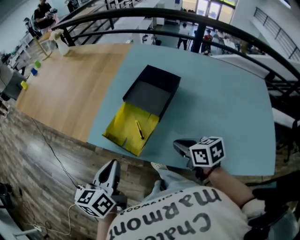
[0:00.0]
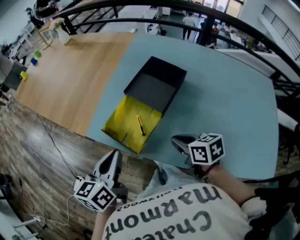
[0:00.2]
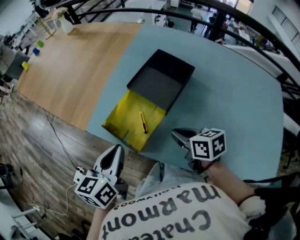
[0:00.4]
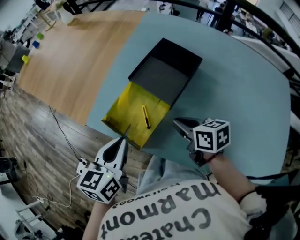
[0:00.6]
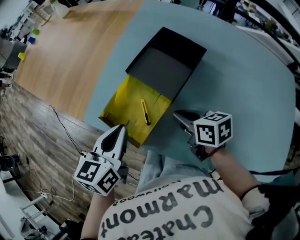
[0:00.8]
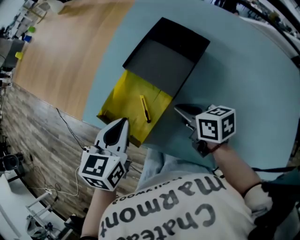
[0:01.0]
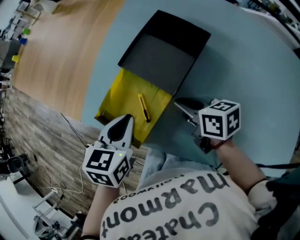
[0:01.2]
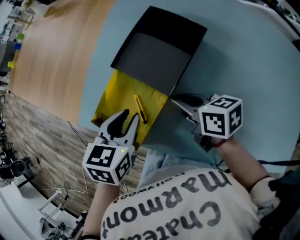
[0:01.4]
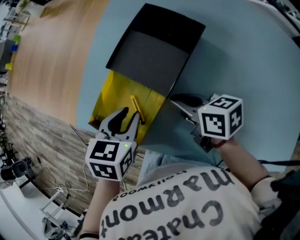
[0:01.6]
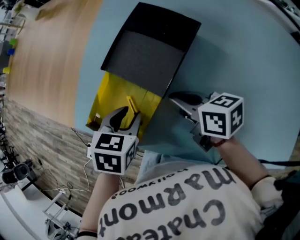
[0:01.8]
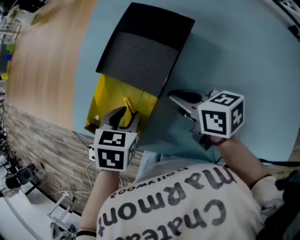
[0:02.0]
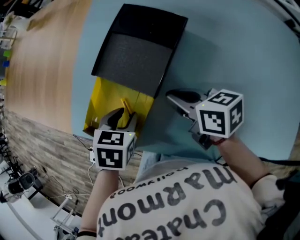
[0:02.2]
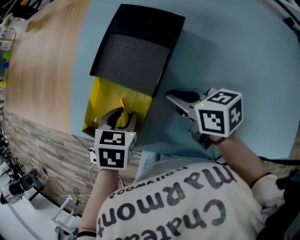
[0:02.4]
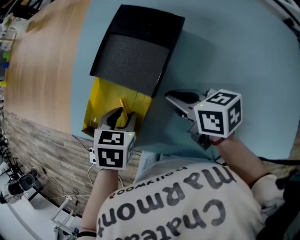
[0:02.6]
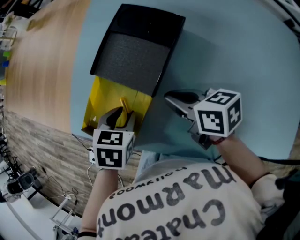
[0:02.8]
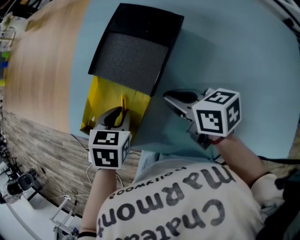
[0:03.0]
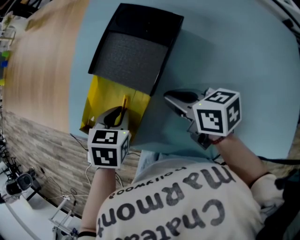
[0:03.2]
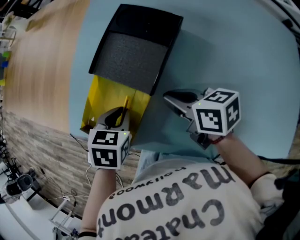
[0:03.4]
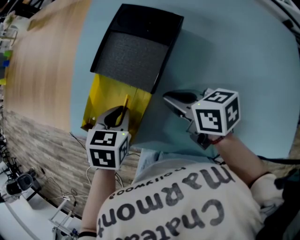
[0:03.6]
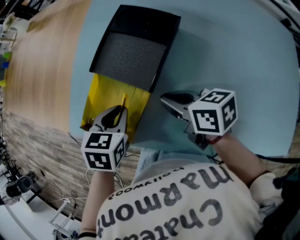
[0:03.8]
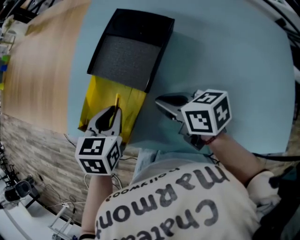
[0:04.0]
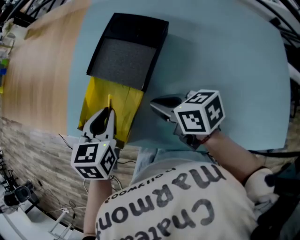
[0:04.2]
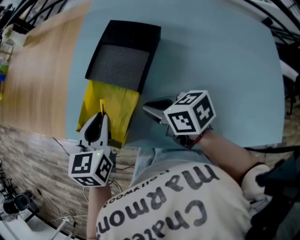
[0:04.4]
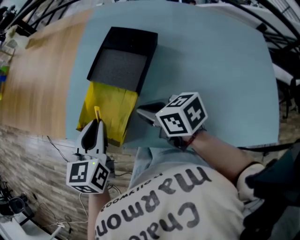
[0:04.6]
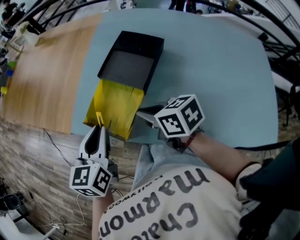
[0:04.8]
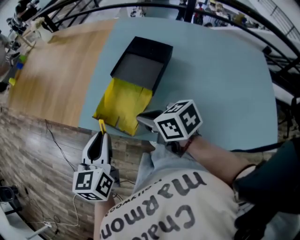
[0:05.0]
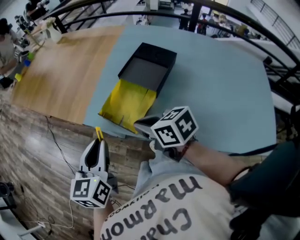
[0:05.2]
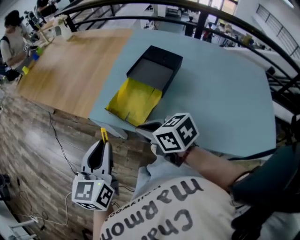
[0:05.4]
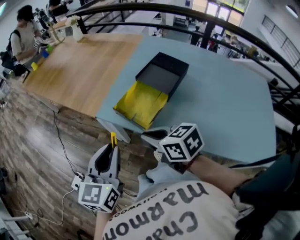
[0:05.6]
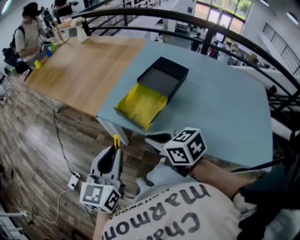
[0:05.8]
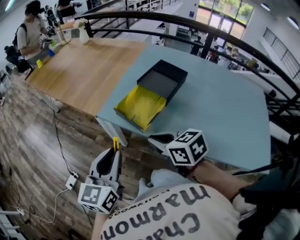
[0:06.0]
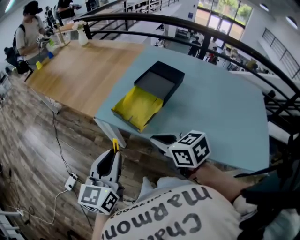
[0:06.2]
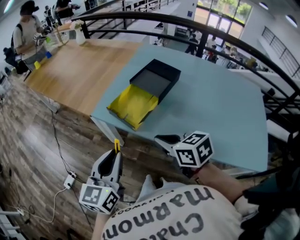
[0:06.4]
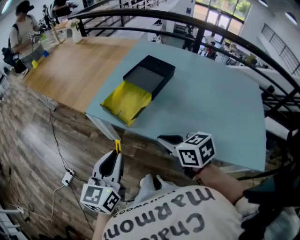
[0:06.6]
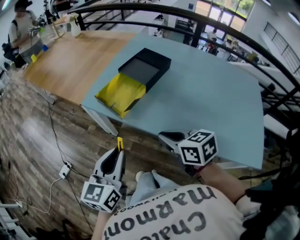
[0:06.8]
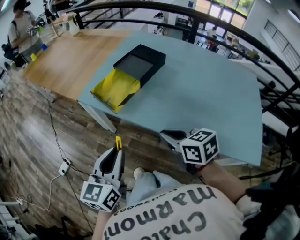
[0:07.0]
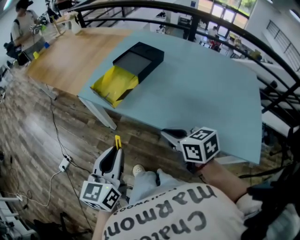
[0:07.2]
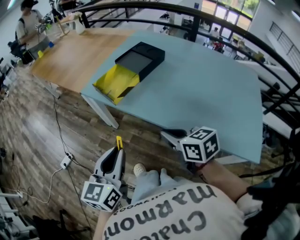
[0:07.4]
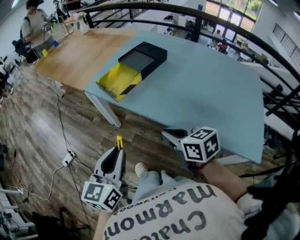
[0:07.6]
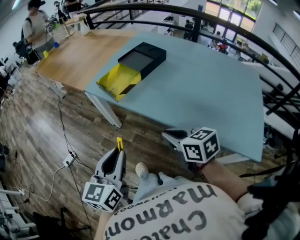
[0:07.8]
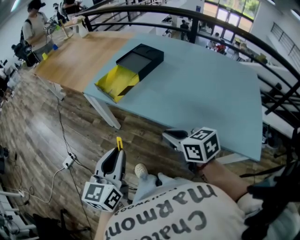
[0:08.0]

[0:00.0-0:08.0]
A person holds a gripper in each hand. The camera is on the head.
0:00.0 to 0:01.6: The left gripper travels forward, downward and to the right by about 20 cm, points its fingers about 30 degrees further downward, and opens. Meanwhile the right gripper is displaced forward and downward by roughly 15 cm.
0:01.6 to 0:03.2: The grippers move only a little.
0:03.2 to 0:04.8: The right gripper travels to the left and upward by some 10 cm, while the left gripper shifts about 15 cm upward and to the left, and points its fingers roughly 40 degrees further upward.
0:04.8 to 0:06.4: The right gripper is displaced backward by roughly 15 cm. Meanwhile the left gripper moves backward and to the left, roughly 20 cm.
0:06.4 to 0:08.0: Both grippers travel together backward and to the right, roughly 20 cm.

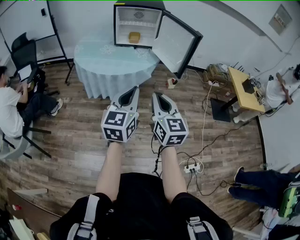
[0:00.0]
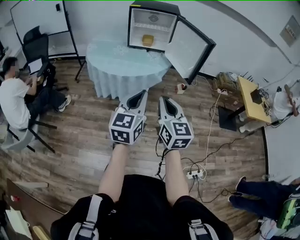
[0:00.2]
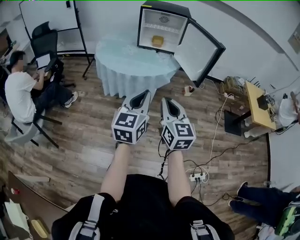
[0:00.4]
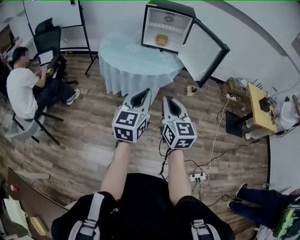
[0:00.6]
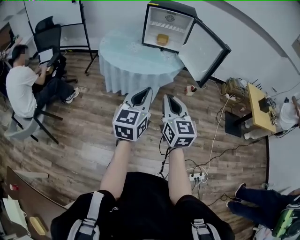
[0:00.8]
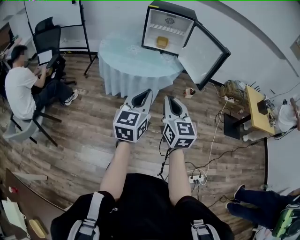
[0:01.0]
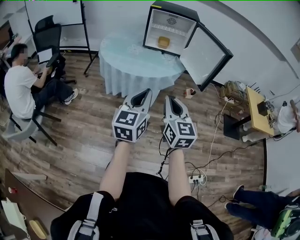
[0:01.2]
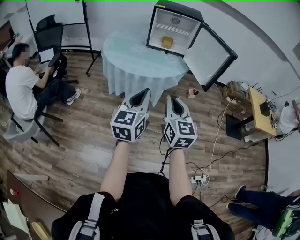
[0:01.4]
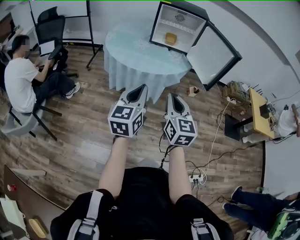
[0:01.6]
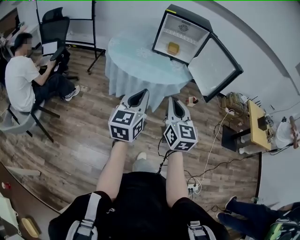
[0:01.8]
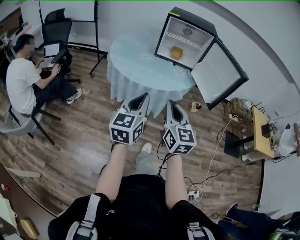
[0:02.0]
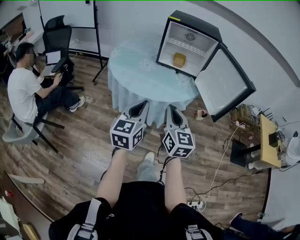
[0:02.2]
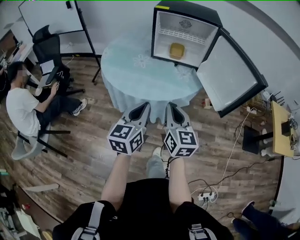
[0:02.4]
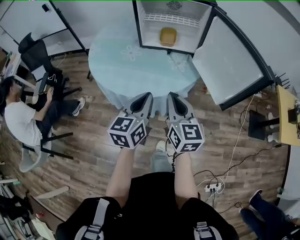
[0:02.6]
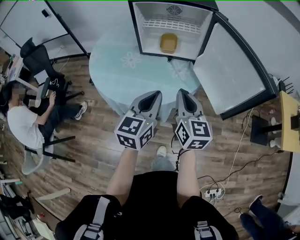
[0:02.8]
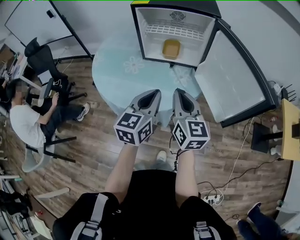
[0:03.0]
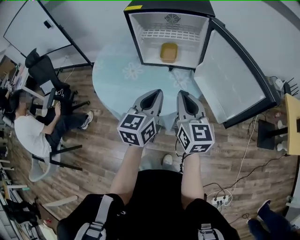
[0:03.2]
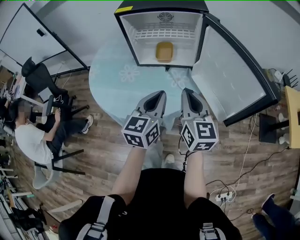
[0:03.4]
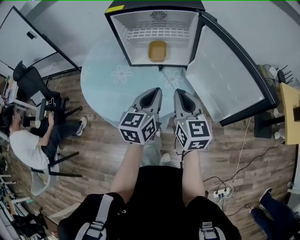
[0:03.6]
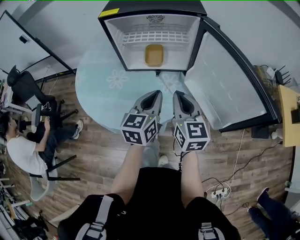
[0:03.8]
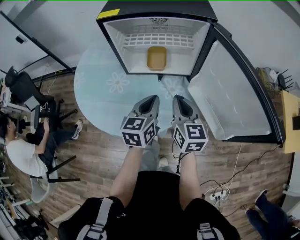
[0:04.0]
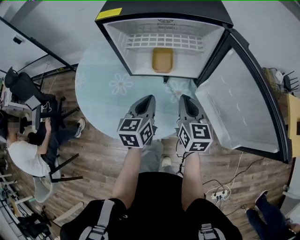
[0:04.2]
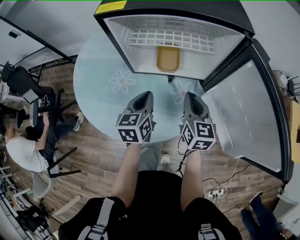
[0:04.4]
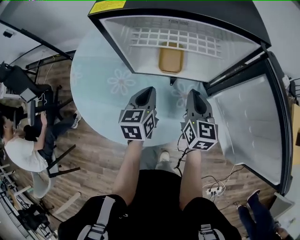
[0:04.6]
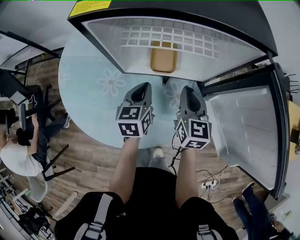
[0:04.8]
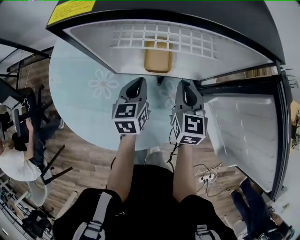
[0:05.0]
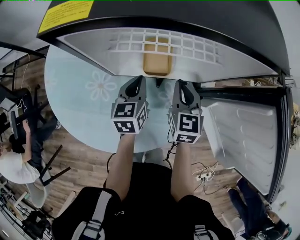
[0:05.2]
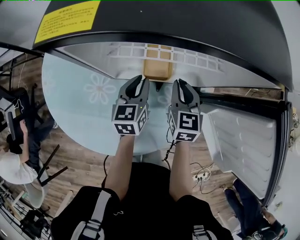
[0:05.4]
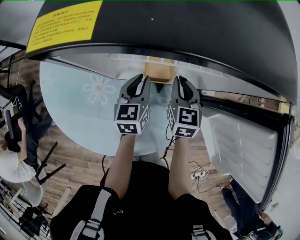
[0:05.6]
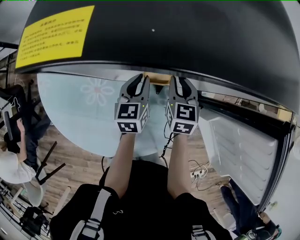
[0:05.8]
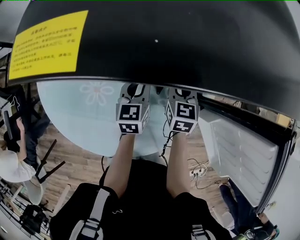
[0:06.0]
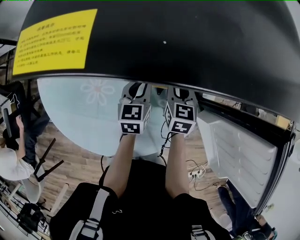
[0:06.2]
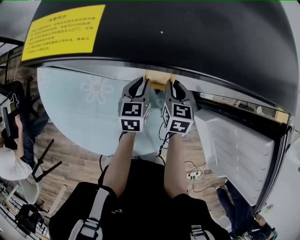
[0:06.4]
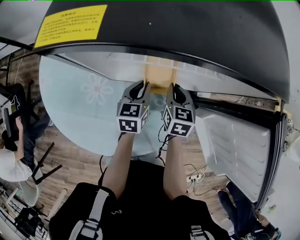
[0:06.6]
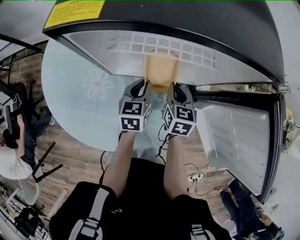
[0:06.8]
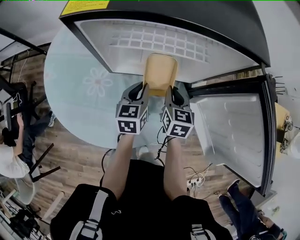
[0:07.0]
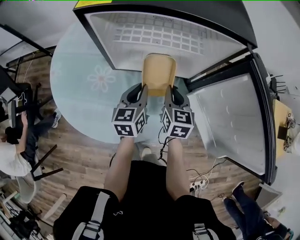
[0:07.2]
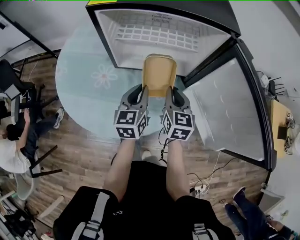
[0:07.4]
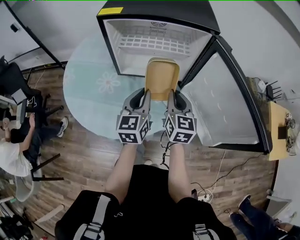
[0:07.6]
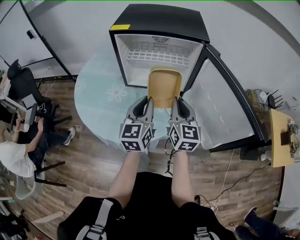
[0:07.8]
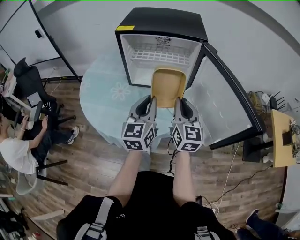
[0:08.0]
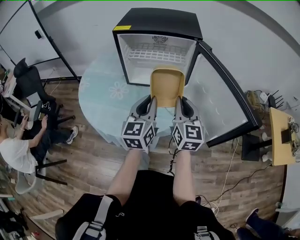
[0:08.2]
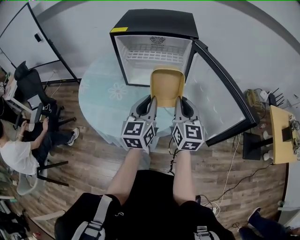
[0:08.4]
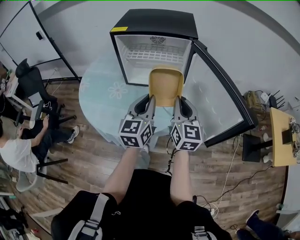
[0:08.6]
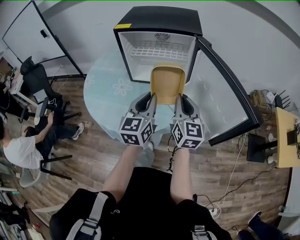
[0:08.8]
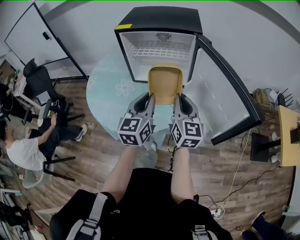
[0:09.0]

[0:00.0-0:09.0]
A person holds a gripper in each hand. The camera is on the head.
0:00.0 to 0:01.6: Both grippers move to the left, about 10 cm.
0:01.6 to 0:03.0: The two grippers travel together, forward, some 40 cm.
0:03.0 to 0:04.4: The grippers both shift forward and downward by about 30 cm.
0:04.4 to 0:06.0: The grippers both shift forward and downward by about 20 cm.
0:06.0 to 0:07.6: The two grippers go about 30 cm backward and upward. The right gripper turns by some 20 degrees.
0:07.6 to 0:09.0: The two grippers go roughly 15 cm backward and upward.

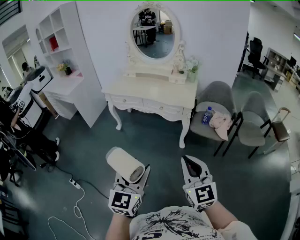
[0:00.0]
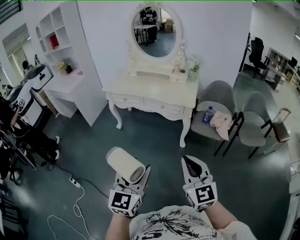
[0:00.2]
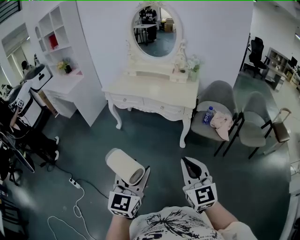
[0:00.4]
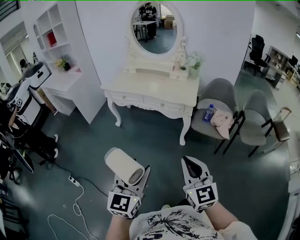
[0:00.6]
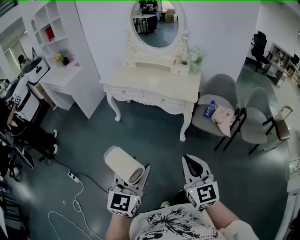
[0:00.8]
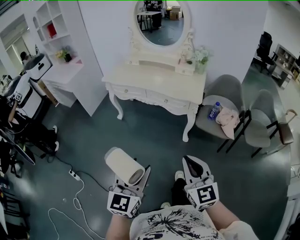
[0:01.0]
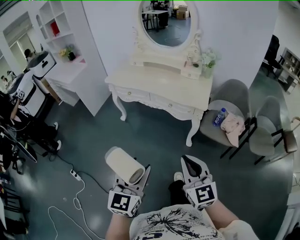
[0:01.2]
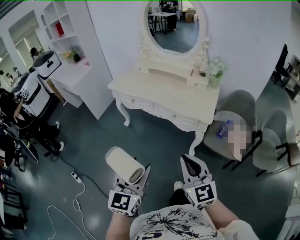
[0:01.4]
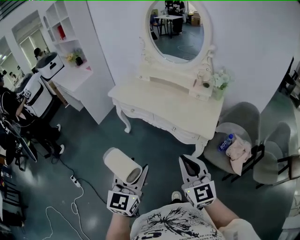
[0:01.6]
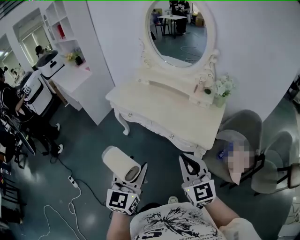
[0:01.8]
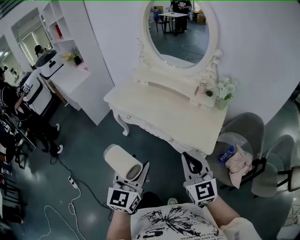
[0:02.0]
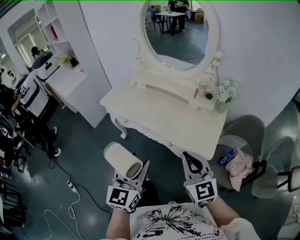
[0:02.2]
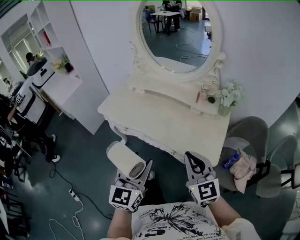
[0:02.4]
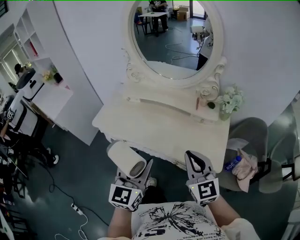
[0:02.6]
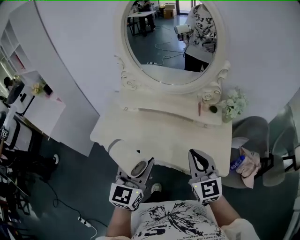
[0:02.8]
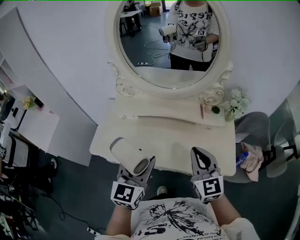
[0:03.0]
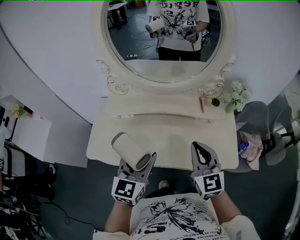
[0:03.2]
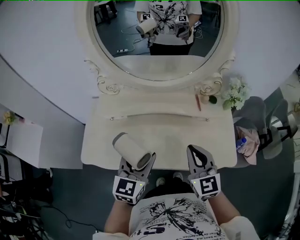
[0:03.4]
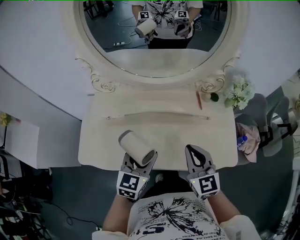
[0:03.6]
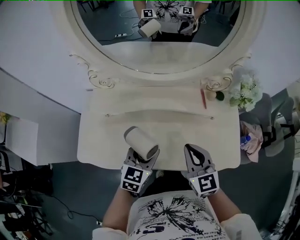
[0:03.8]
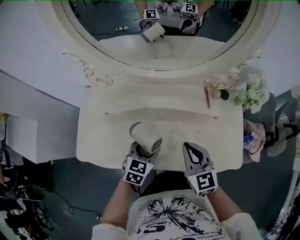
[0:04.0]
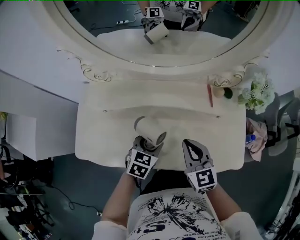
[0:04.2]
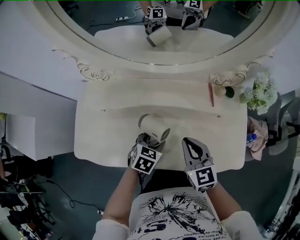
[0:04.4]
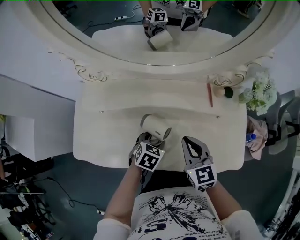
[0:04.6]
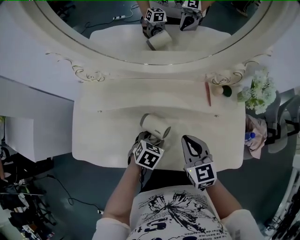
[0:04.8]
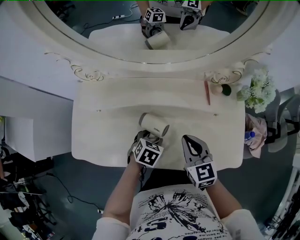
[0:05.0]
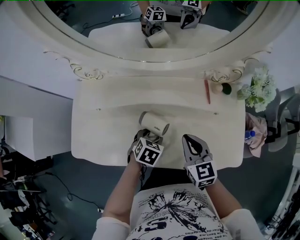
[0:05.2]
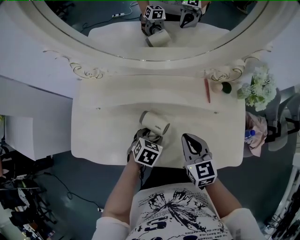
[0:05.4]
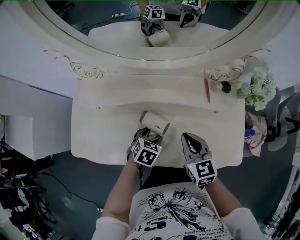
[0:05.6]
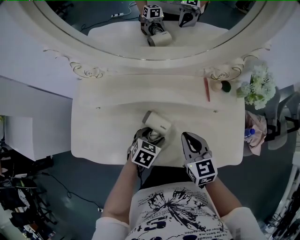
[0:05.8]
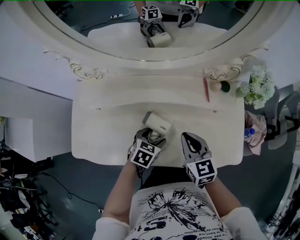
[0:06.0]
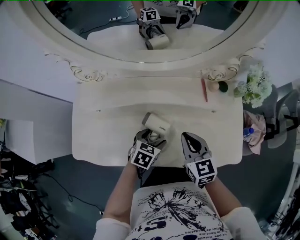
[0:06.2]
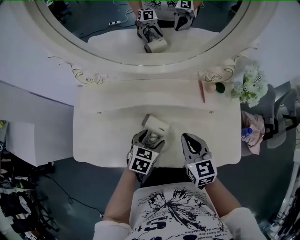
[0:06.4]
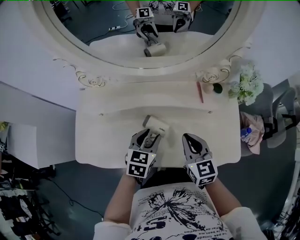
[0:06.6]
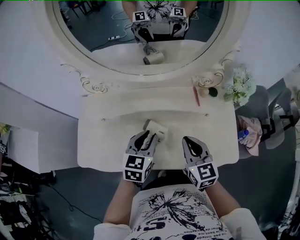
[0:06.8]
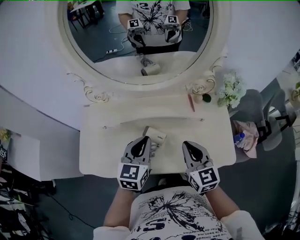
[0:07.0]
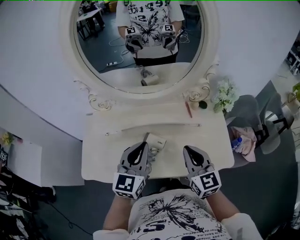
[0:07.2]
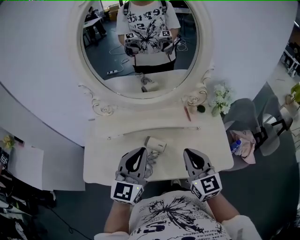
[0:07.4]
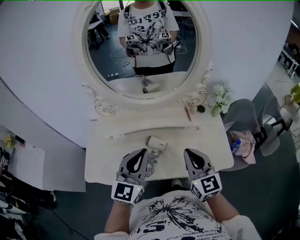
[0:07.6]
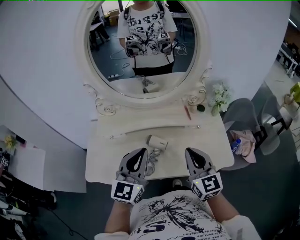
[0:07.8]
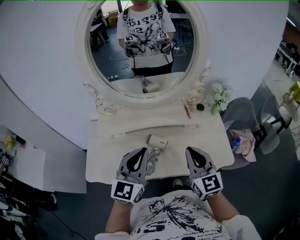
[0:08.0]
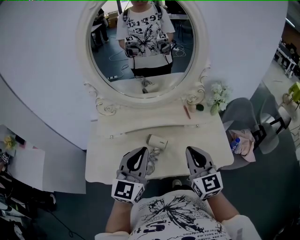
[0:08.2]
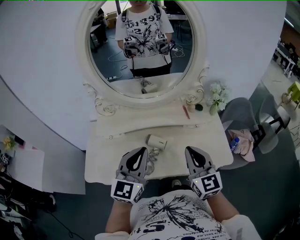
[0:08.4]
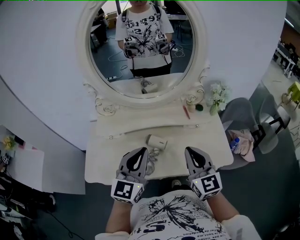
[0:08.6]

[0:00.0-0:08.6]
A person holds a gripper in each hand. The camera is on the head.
0:00.0 to 0:01.4: Both grippers travel together forward, about 20 cm.
0:01.4 to 0:02.8: The pair of grippers is taken forward, approximately 50 cm.
0:02.8 to 0:04.4: The left gripper moves downward and forward, roughly 35 cm, and points its fingers approximately 50 degrees further downward, while the right gripper is displaced forward, downward and to the left by approximately 25 cm, and changes its angle by about 20 degrees.
0:04.4 to 0:05.8: The grippers move only a little.
0:05.8 to 0:07.2: The left gripper is displaced upward by about 30 cm, angles its fingers upward, by some 50 degrees, and closes up; the right gripper shifts roughly 15 cm upward.
0:07.2 to 0:08.6: The grippers both shift backward by some 5 cm.
